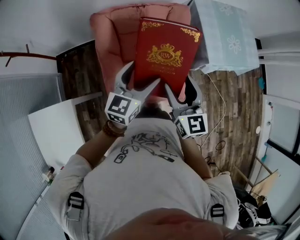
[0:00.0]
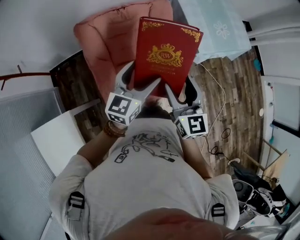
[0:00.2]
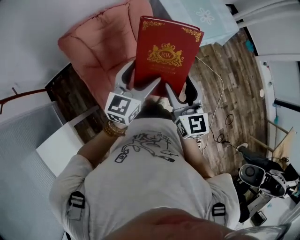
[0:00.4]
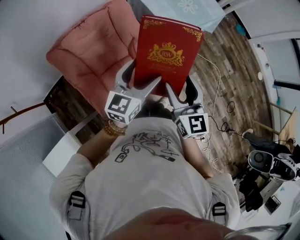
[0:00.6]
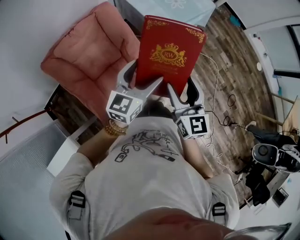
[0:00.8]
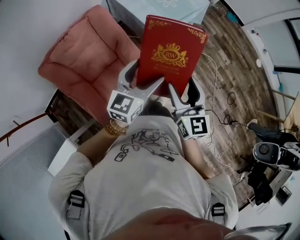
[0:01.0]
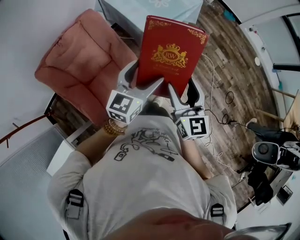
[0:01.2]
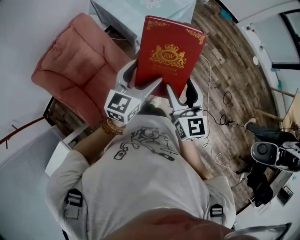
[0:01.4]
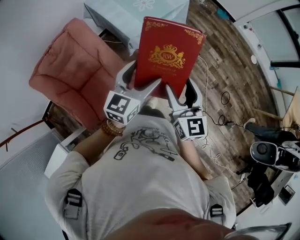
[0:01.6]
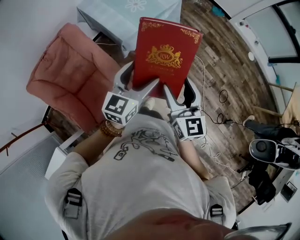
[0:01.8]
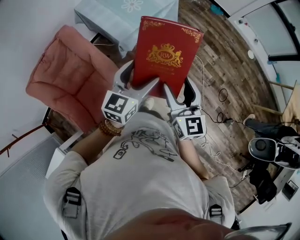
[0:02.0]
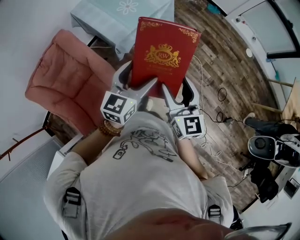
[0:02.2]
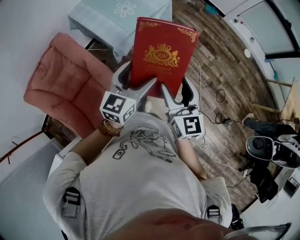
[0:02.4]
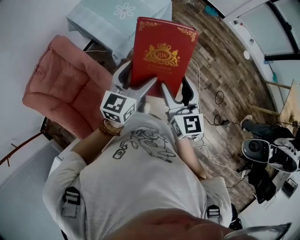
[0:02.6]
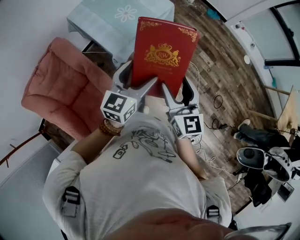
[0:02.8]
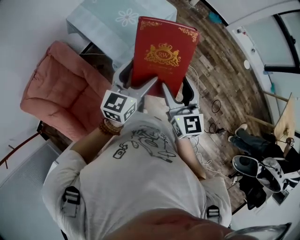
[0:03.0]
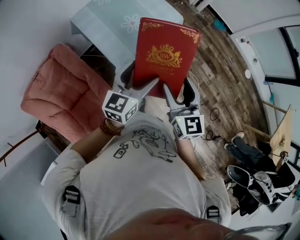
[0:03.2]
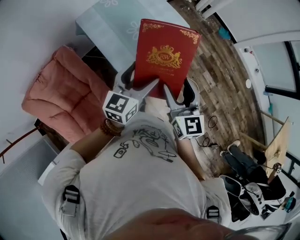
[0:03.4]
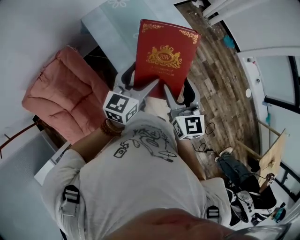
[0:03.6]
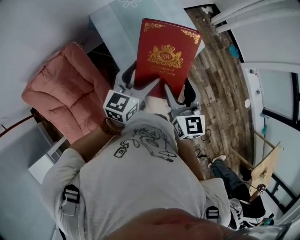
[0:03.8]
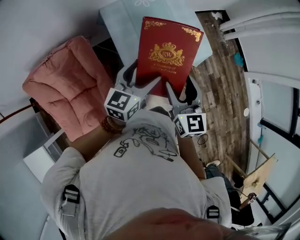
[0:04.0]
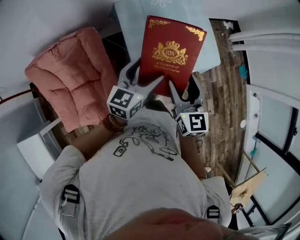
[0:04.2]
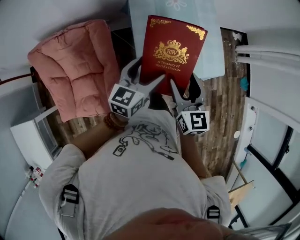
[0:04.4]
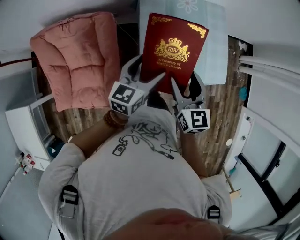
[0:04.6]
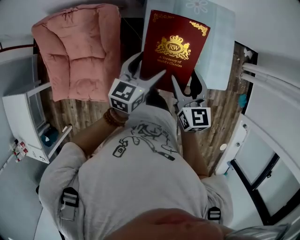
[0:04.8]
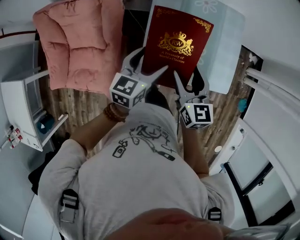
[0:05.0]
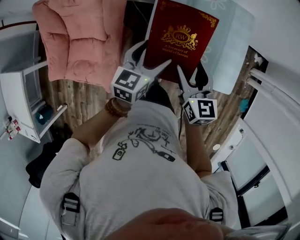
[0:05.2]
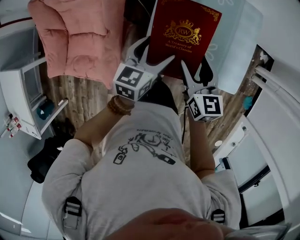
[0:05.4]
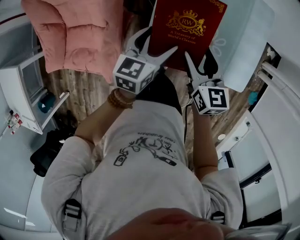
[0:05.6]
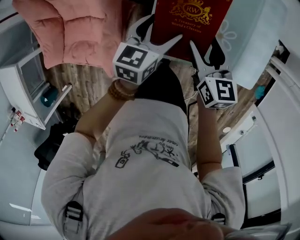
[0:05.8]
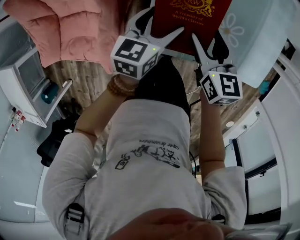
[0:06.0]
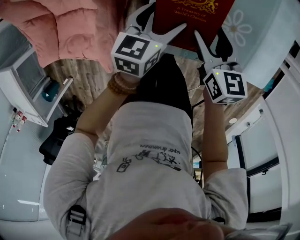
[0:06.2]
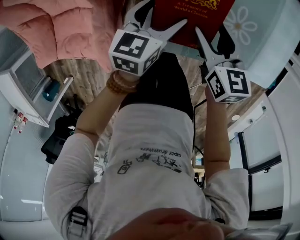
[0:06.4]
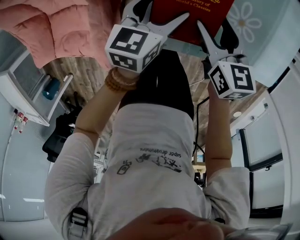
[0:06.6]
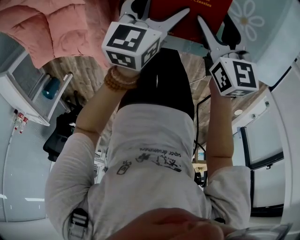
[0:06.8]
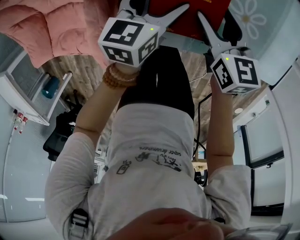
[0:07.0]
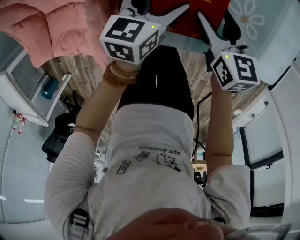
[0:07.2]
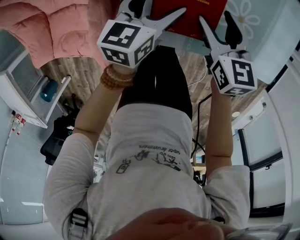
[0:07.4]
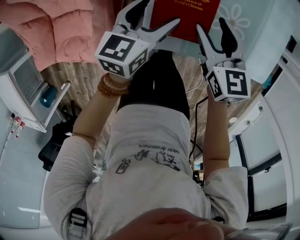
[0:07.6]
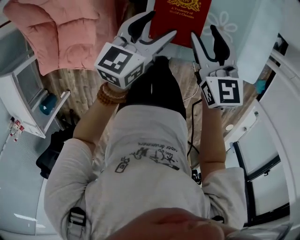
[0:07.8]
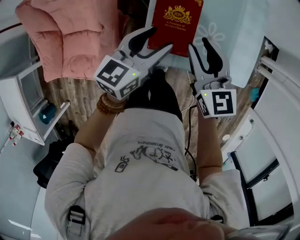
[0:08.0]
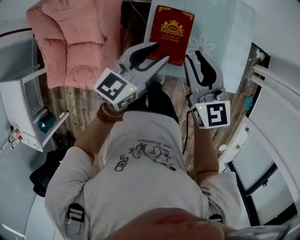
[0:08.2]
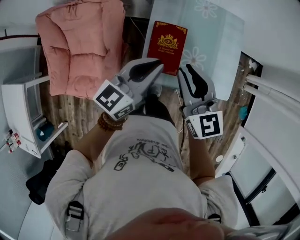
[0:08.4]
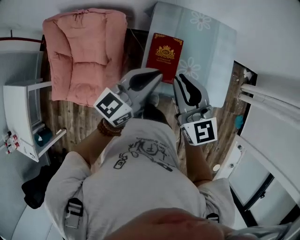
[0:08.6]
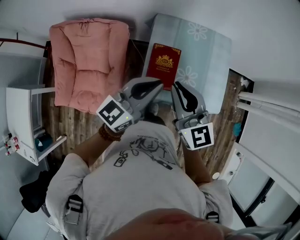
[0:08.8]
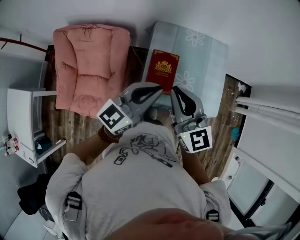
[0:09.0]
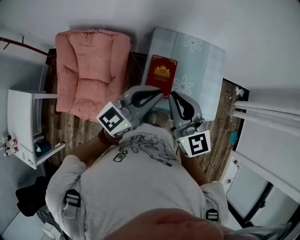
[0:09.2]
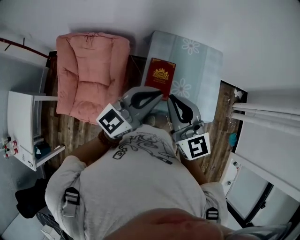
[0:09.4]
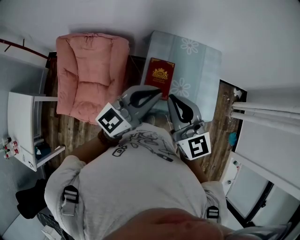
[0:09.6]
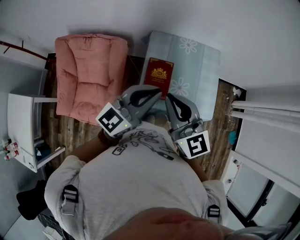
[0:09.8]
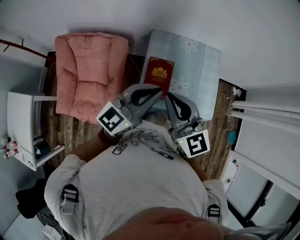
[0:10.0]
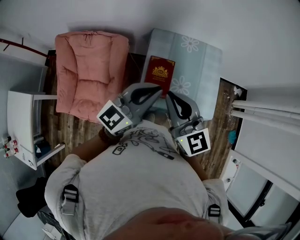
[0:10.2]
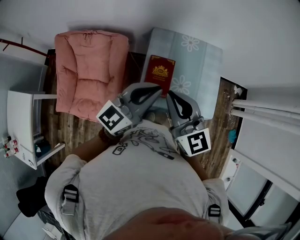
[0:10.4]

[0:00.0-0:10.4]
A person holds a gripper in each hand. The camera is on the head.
0:00.0 to 0:01.4: The pair of grippers is taken about 50 cm. The left gripper turns by about 40 degrees, while the right gripper changes its angle by roughly 40 degrees.
0:01.4 to 0:03.0: The two grippers go roughly 25 cm forward and to the right.
0:04.4 to 0:06.0: The right gripper moves downward and forward, about 25 cm, and turns by roughly 30 degrees; the left gripper moves downward, about 25 cm, and rotates about 20 degrees.
0:06.0 to 0:07.4: Both grippers move downward, approximately 5 cm.
0:07.4 to 0:09.0: Both grippers travel together upward, roughly 40 cm. The right gripper tilts its fingers about 30 degrees upward, and closes. The left gripper points its fingers some 30 degrees further upward, and closes up.
0:09.0 to 0:10.4: The right gripper goes about 5 cm upward.

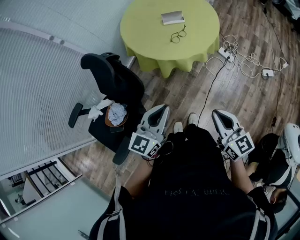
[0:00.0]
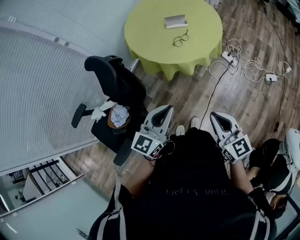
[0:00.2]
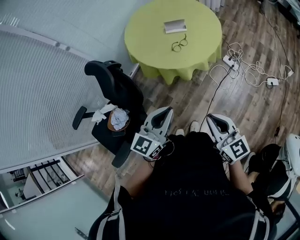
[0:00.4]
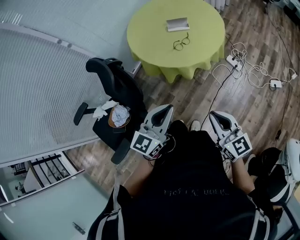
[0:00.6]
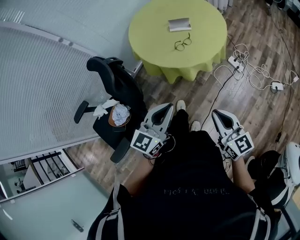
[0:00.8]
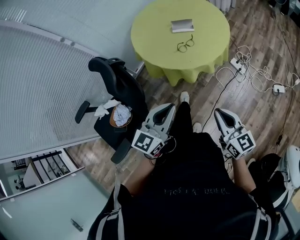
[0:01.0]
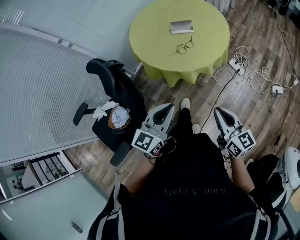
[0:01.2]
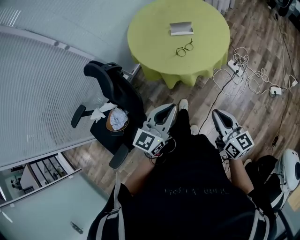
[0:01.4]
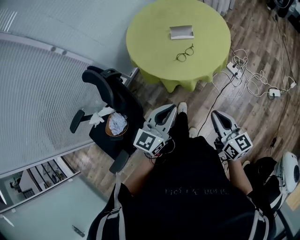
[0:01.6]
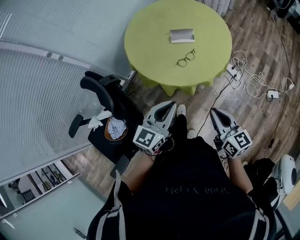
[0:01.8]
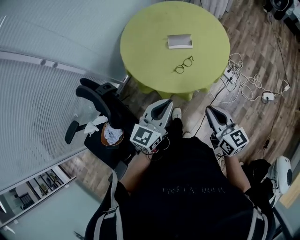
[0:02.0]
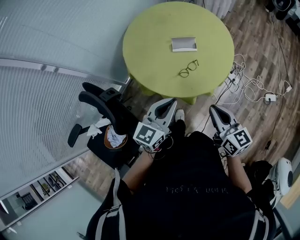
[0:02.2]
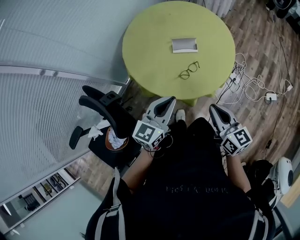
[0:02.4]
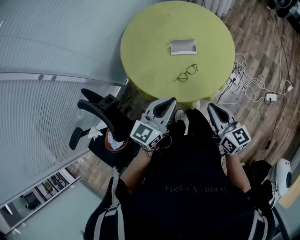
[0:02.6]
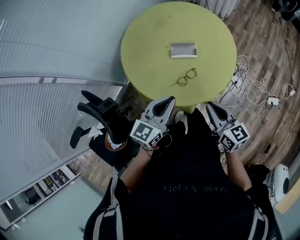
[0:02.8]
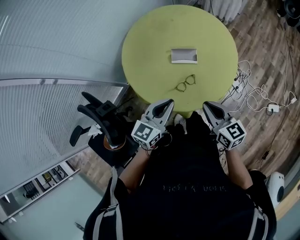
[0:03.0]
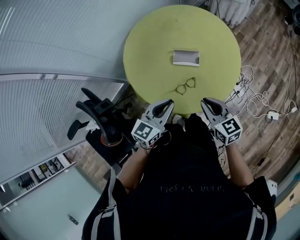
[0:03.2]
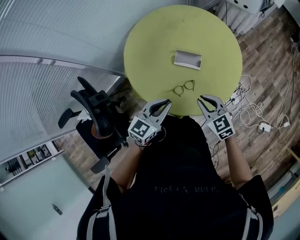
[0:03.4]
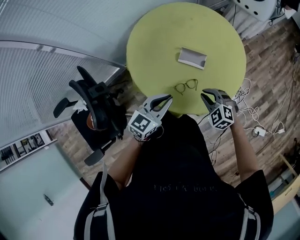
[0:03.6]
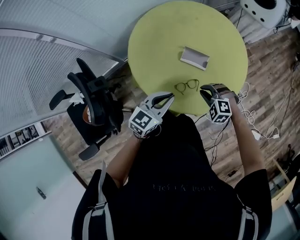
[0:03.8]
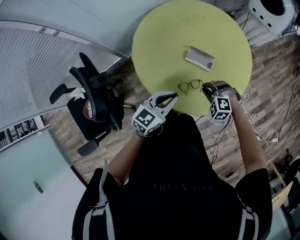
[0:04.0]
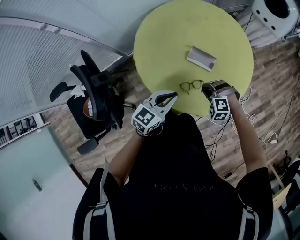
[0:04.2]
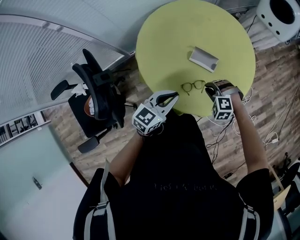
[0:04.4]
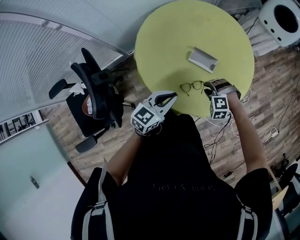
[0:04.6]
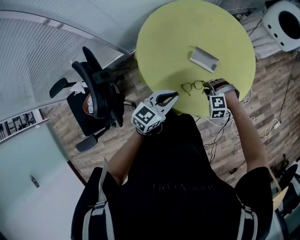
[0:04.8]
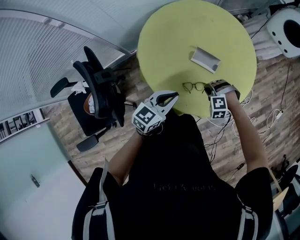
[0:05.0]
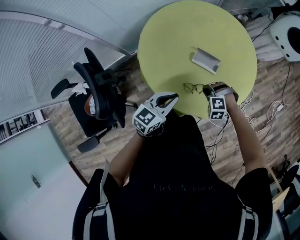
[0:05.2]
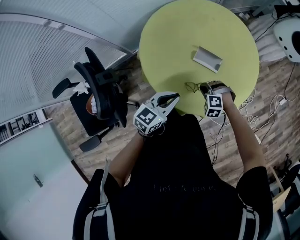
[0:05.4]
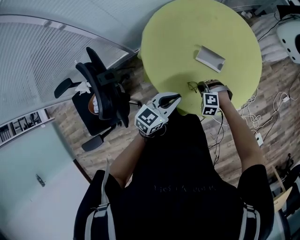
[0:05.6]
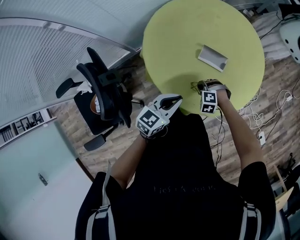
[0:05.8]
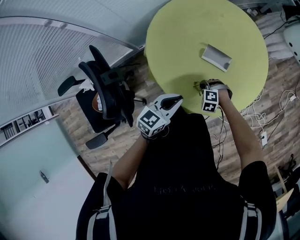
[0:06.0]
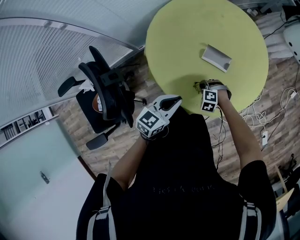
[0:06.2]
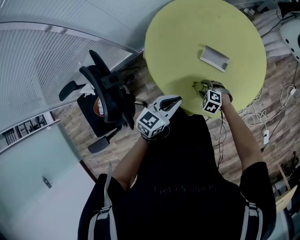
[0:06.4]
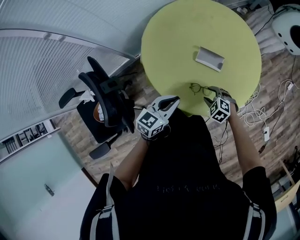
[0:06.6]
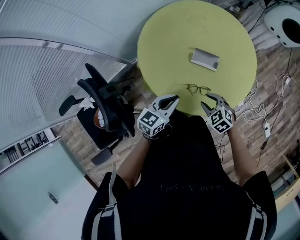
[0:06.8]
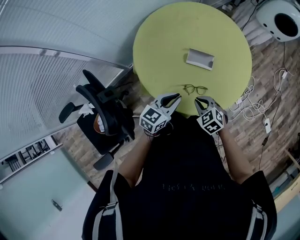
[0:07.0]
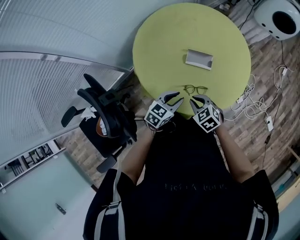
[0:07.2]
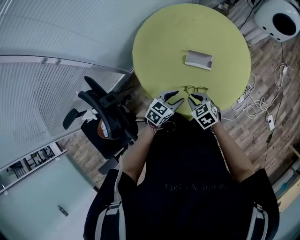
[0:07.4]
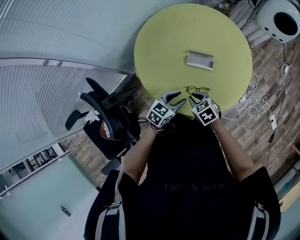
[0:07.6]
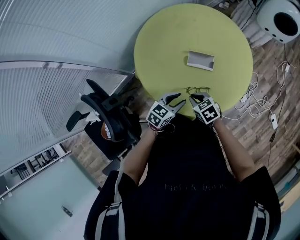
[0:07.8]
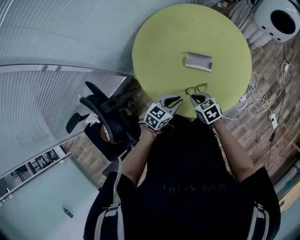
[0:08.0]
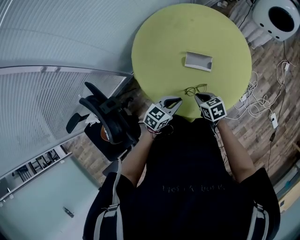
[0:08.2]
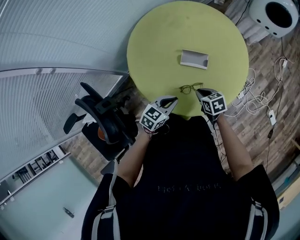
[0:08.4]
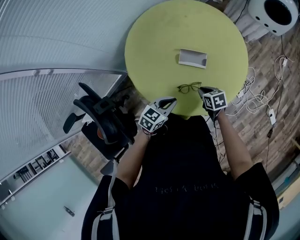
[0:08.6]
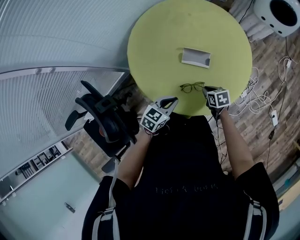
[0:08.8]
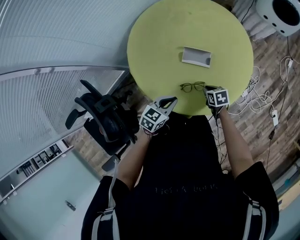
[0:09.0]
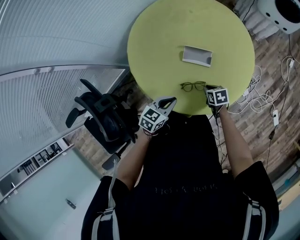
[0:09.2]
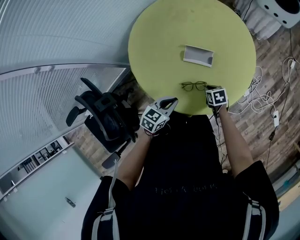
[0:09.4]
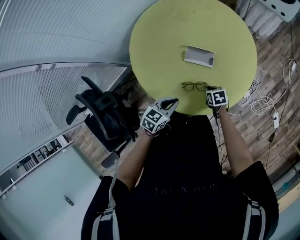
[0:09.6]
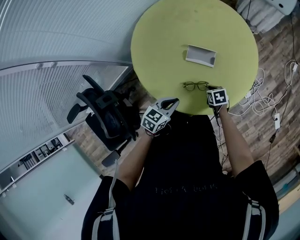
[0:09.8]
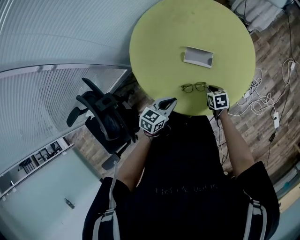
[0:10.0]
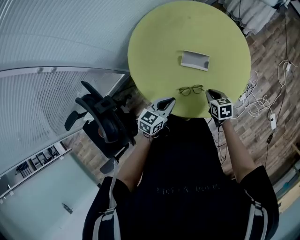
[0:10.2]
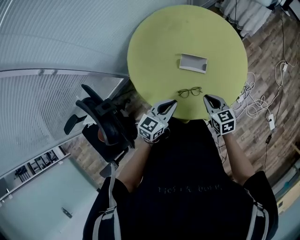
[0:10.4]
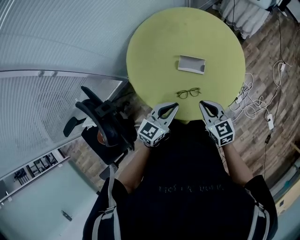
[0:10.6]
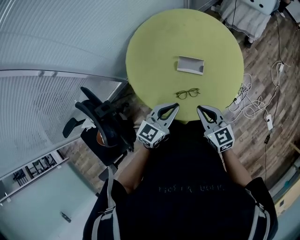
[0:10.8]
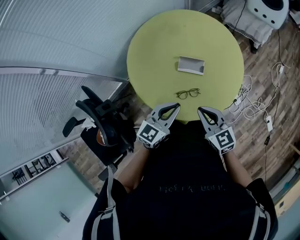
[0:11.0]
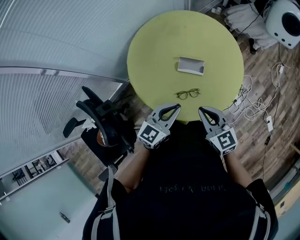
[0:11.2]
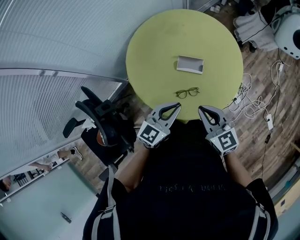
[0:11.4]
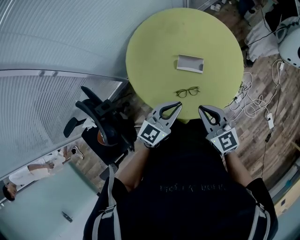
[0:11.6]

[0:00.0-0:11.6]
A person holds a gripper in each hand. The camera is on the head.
0:00.0 to 0:01.4: The left gripper is displaced forward and to the right by roughly 10 cm; the right gripper shifts roughly 10 cm forward.
0:01.4 to 0:02.8: Both grippers move forward, about 25 cm.
0:02.8 to 0:04.4: The right gripper is displaced downward and forward by approximately 25 cm, and rolls counterclockwise, seen from behind, by approximately 100 degrees, while the left gripper heads downward, covering roughly 10 cm.
0:04.4 to 0:05.8: The right gripper shifts about 10 cm downward and to the left.
0:05.8 to 0:07.2: The right gripper goes about 10 cm upward, twists about 50 degrees clockwise, seen from behind, and opens, then closes again; the left gripper moves downward, some 5 cm.
0:07.2 to 0:08.8: The right gripper goes some 15 cm downward, to the right and forward, and rotates around the line of its fingers by approximately 40 degrees, clockwise from behind.
0:08.8 to 0:10.2: There are only small adjustments of the grippers.
0:10.2 to 0:11.6: The left gripper goes some 15 cm upward, and turns by roughly 20 degrees; the right gripper travels upward by approximately 25 cm, and tilts its fingers some 30 degrees upward.

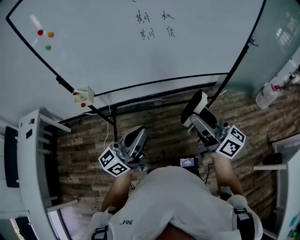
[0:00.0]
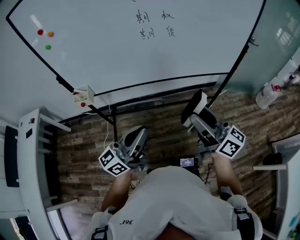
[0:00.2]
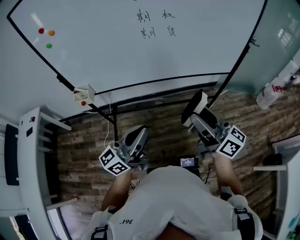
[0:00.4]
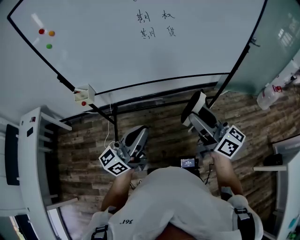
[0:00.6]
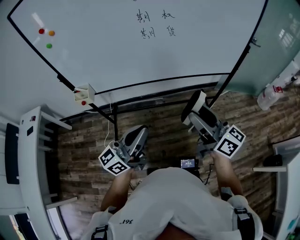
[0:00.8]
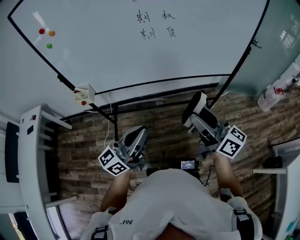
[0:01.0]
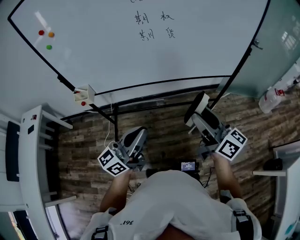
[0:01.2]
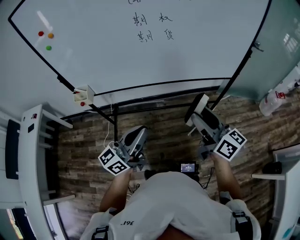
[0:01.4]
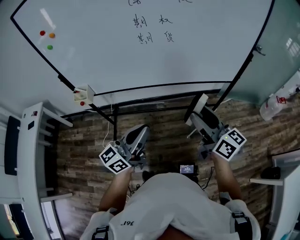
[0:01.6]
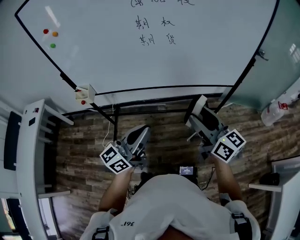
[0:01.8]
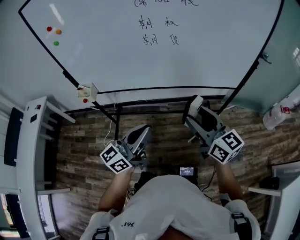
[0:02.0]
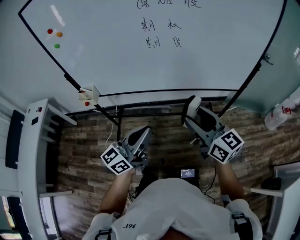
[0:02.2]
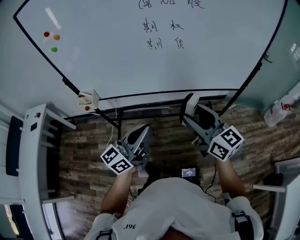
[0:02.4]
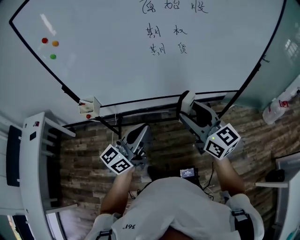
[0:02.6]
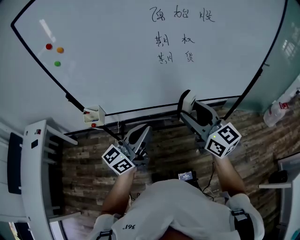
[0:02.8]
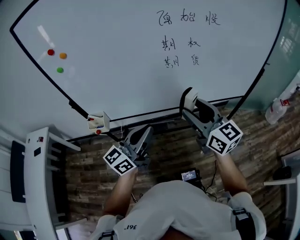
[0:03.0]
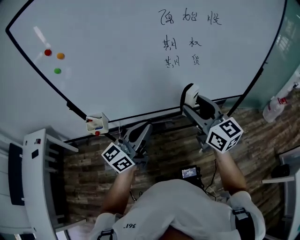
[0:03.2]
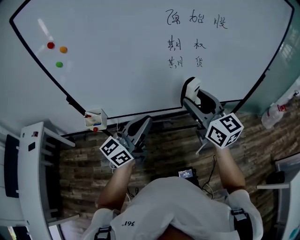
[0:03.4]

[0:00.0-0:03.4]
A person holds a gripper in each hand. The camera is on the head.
0:00.0 to 0:01.6: Both grippers move to the right, approximately 5 cm.
0:01.6 to 0:03.4: The left gripper moves forward and to the left, about 20 cm. Meanwhile the right gripper travels to the left and forward by roughly 20 cm, and rotates some 20 degrees.
